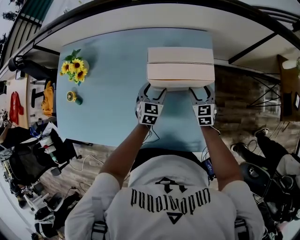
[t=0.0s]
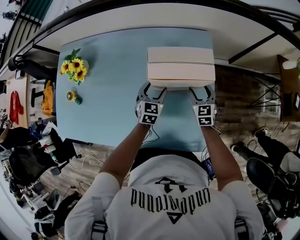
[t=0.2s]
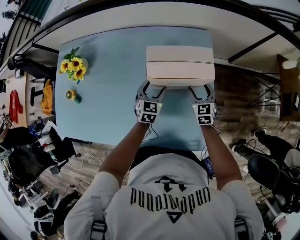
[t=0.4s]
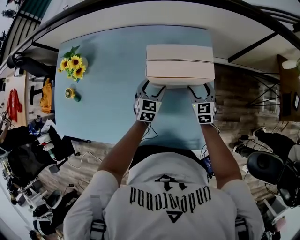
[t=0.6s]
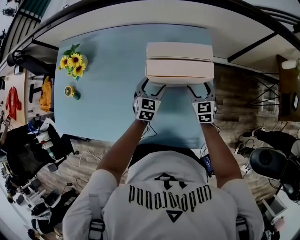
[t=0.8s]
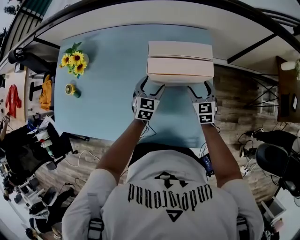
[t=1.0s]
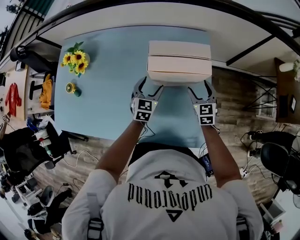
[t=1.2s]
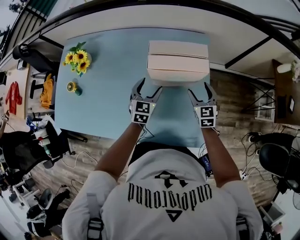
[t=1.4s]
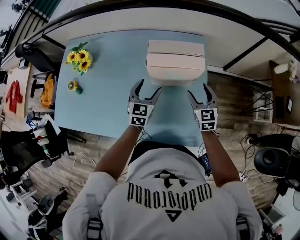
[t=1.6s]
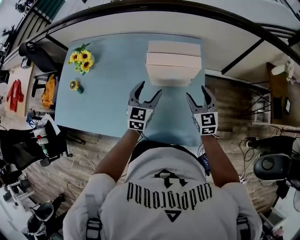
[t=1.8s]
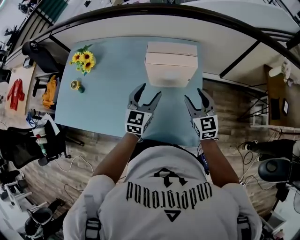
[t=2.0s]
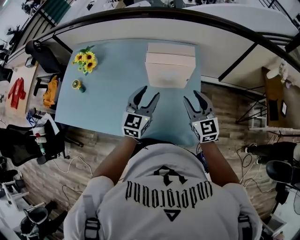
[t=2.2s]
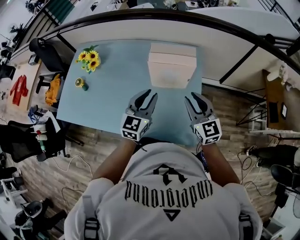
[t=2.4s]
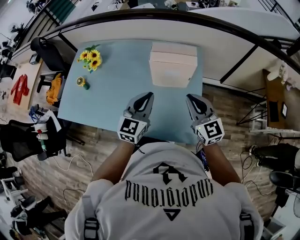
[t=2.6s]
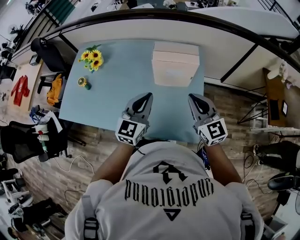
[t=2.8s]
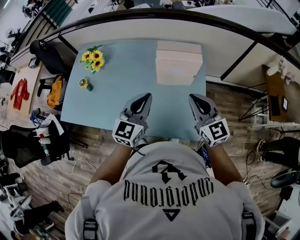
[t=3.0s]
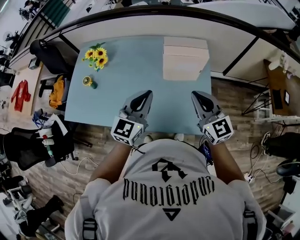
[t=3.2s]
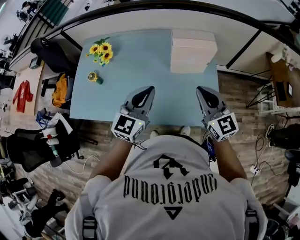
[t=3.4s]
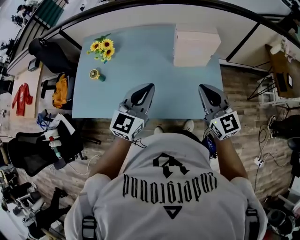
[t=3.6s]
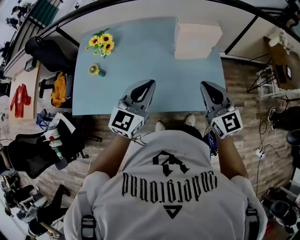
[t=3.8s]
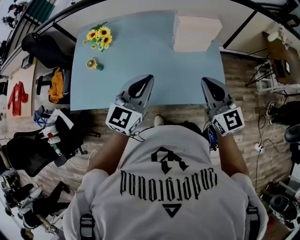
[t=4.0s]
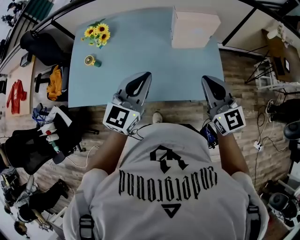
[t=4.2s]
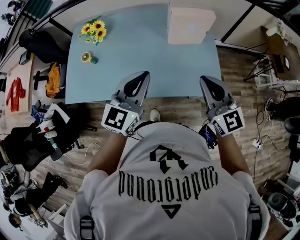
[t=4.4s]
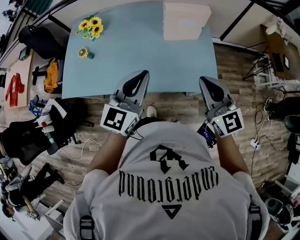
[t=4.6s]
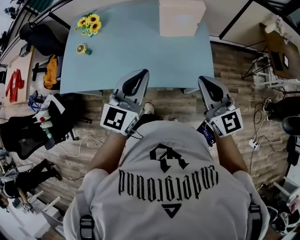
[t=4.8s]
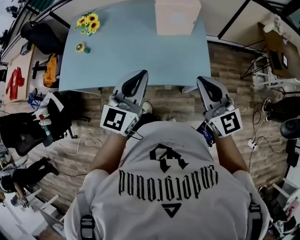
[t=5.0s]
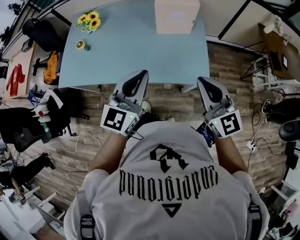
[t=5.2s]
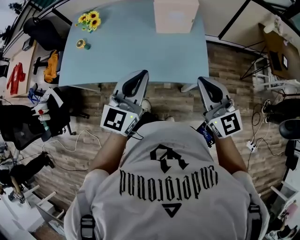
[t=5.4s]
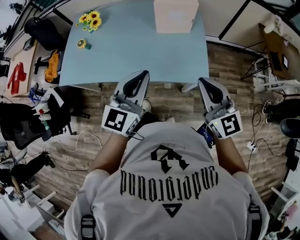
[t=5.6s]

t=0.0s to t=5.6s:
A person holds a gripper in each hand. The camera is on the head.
t=0.0s to t=1.4s: The grippers both shift upward by about 5 cm.
t=1.4s to t=2.8s: Both grippers travel together upward and backward, some 30 cm. The left gripper turns by approximately 20 degrees, and closes its fingers. The right gripper changes its angle by approximately 30 degrees, and closes.
t=2.8s to t=4.2s: The two grippers go roughly 20 cm to the left and backward.
t=4.2s to t=5.6s: The two grippers go approximately 20 cm to the right and backward.

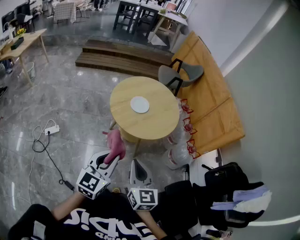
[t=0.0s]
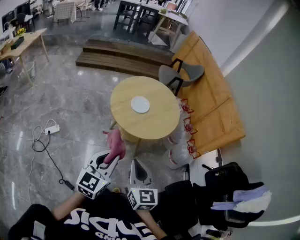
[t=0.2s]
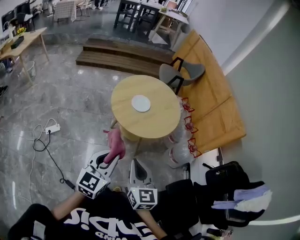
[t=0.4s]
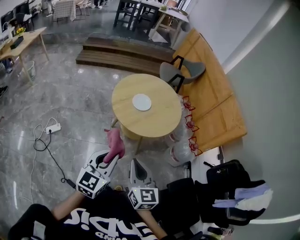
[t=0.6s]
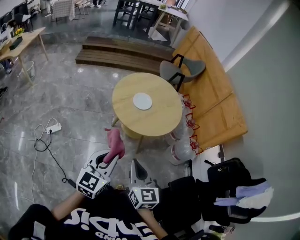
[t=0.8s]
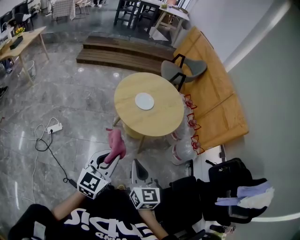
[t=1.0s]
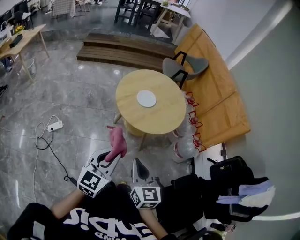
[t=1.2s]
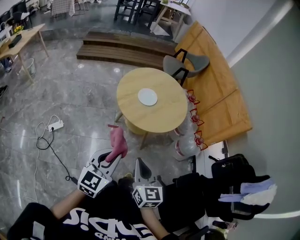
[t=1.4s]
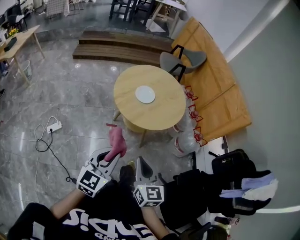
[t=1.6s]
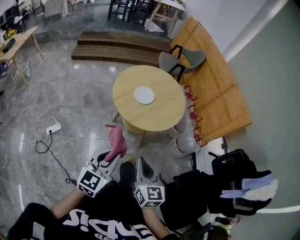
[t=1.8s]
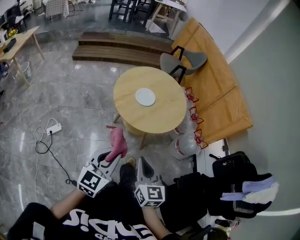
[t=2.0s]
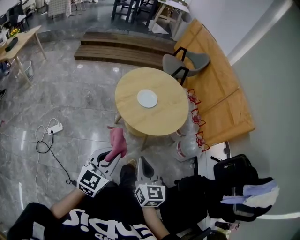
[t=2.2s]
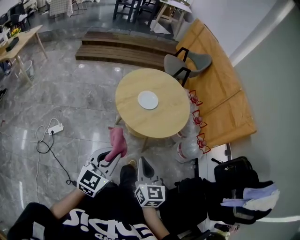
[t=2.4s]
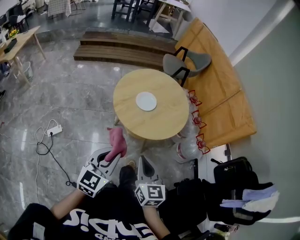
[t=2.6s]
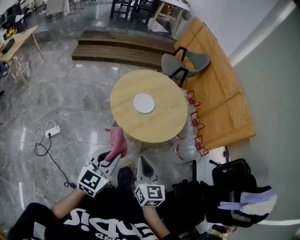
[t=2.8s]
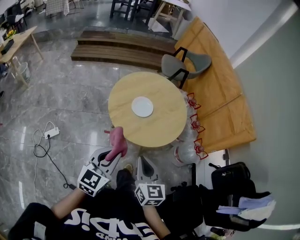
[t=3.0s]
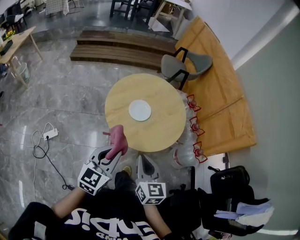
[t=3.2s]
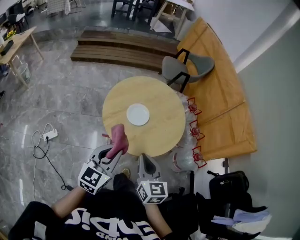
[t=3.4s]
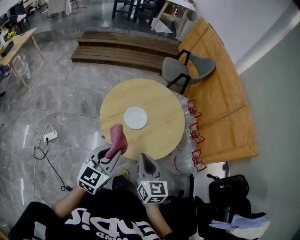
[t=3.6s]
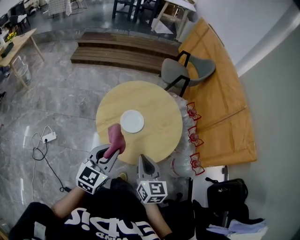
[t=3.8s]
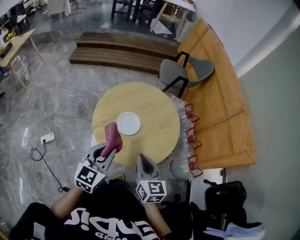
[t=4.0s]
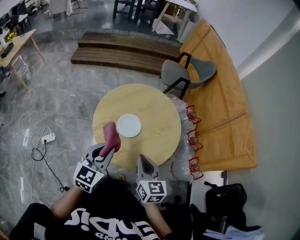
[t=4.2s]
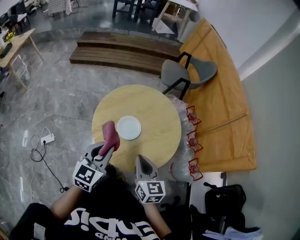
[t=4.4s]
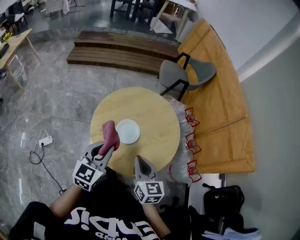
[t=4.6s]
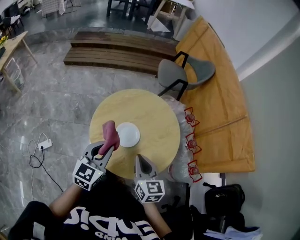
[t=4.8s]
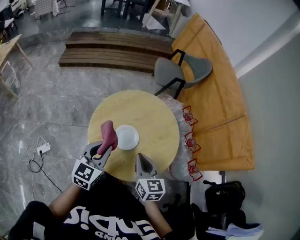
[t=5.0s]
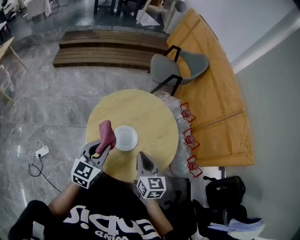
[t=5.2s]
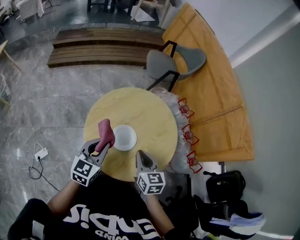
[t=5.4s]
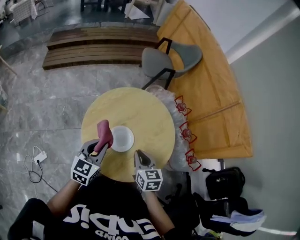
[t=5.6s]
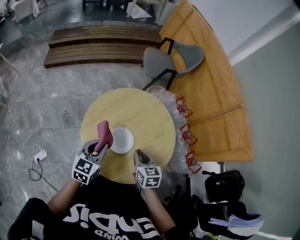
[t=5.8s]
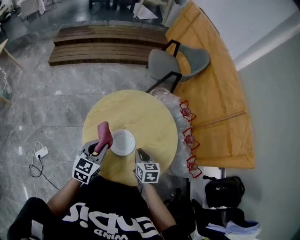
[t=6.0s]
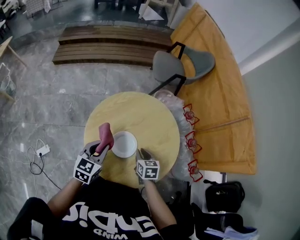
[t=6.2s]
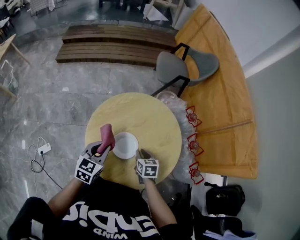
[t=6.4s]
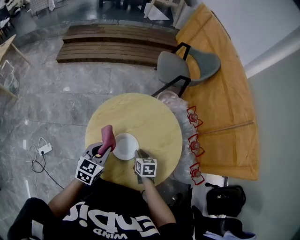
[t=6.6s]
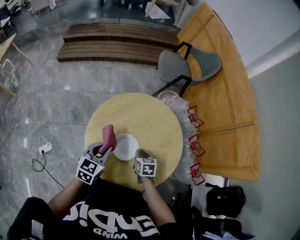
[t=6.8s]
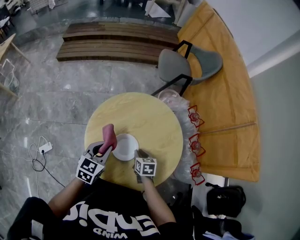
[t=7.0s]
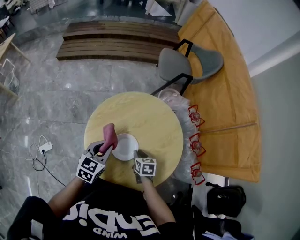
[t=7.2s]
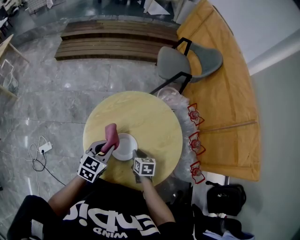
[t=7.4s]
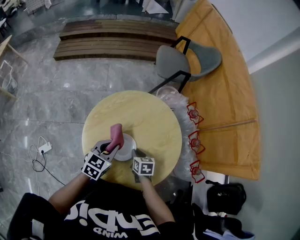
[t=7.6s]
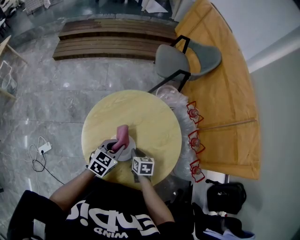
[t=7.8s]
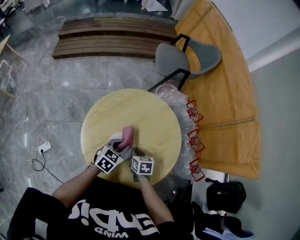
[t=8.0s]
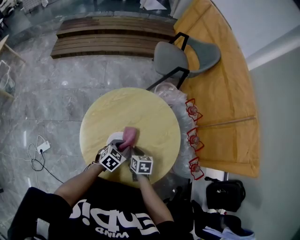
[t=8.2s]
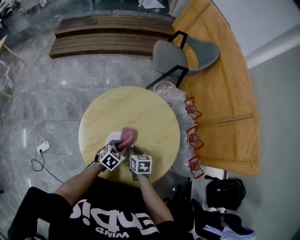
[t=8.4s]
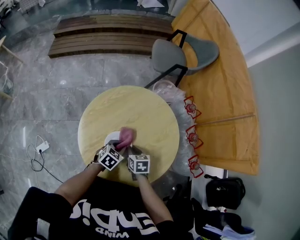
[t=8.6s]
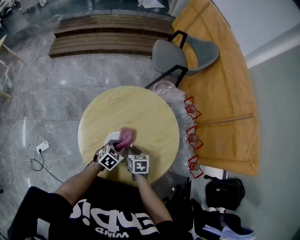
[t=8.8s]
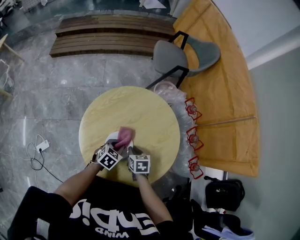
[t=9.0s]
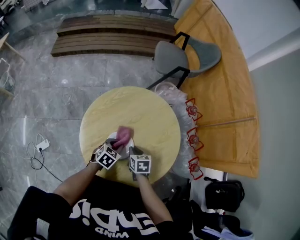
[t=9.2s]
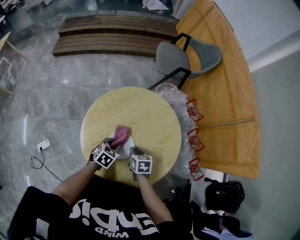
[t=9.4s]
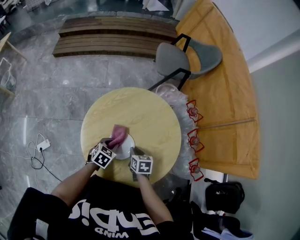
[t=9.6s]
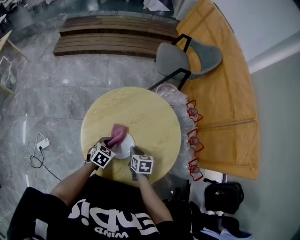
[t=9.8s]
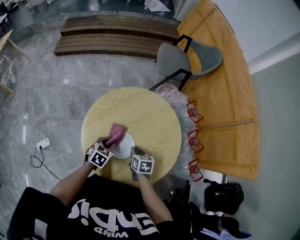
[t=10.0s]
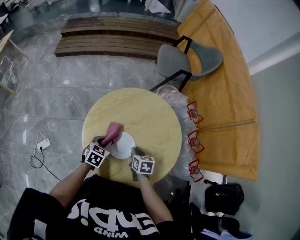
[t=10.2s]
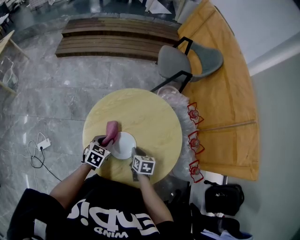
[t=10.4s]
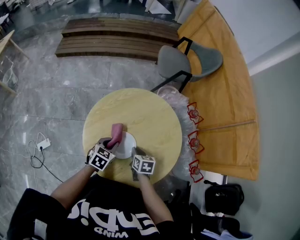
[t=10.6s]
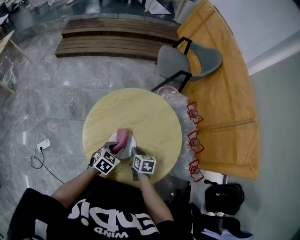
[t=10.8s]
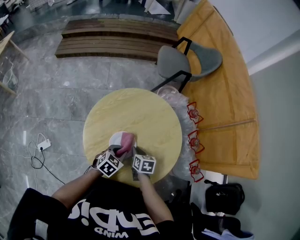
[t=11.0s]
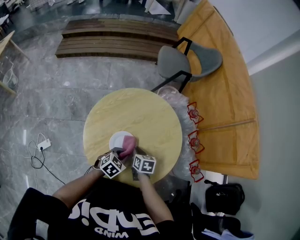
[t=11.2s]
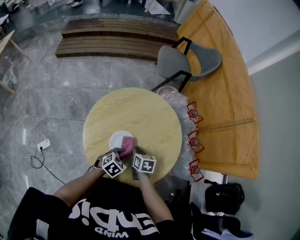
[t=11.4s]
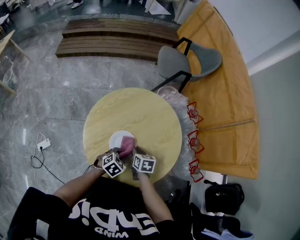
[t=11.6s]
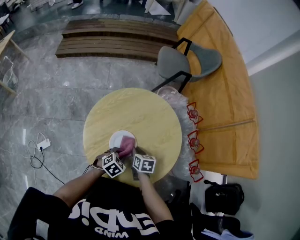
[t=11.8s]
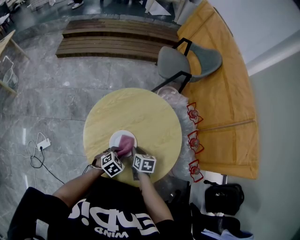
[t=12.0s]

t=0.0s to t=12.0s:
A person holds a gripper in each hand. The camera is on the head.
t=0.0s to t=1.6s: The left gripper ends up some 5 cm from where it was.
t=1.6s to t=3.0s: Both grippers travel together forward, roughly 15 cm.
t=3.0s to t=4.4s: The grippers both shift forward by about 20 cm.
t=4.4s to t=6.0s: The two grippers go some 20 cm forward and downward. The right gripper changes its angle by some 20 degrees.
t=6.0s to t=7.6s: The right gripper travels downward by about 10 cm, while the left gripper is displaced downward and to the right by approximately 10 cm.
t=7.6s to t=9.0s: The left gripper shifts about 10 cm downward.
t=9.0s to t=10.4s: The left gripper moves to the left, roughly 10 cm.
t=10.4s to t=12.0s: The left gripper shifts roughly 10 cm to the right and backward, and swivels approximately 30 degrees.

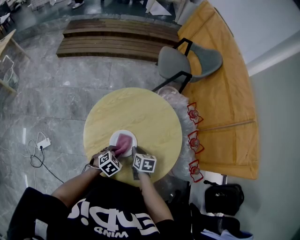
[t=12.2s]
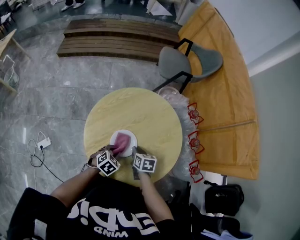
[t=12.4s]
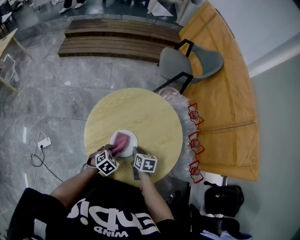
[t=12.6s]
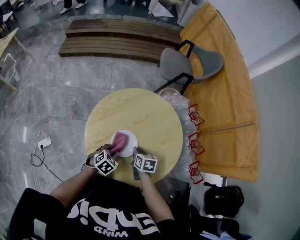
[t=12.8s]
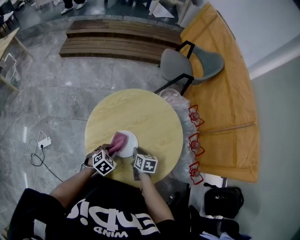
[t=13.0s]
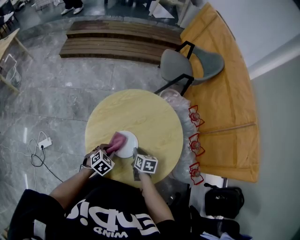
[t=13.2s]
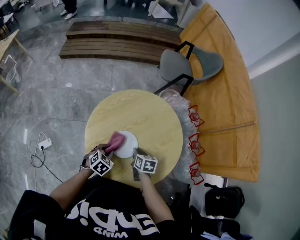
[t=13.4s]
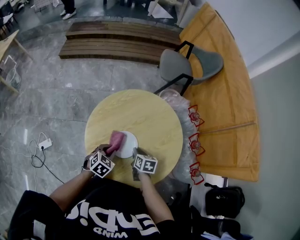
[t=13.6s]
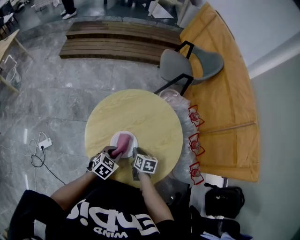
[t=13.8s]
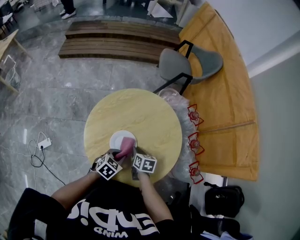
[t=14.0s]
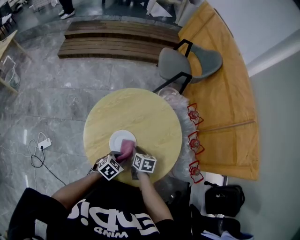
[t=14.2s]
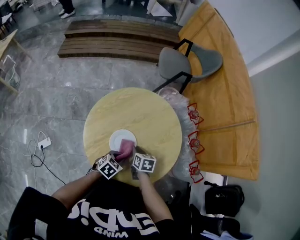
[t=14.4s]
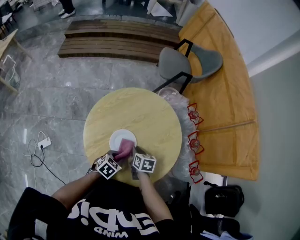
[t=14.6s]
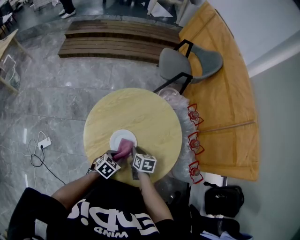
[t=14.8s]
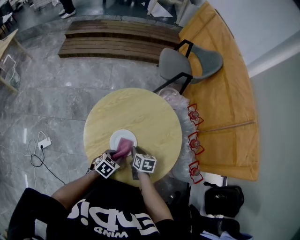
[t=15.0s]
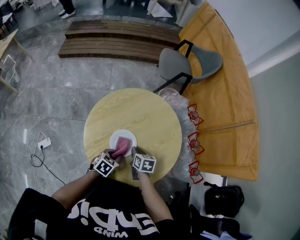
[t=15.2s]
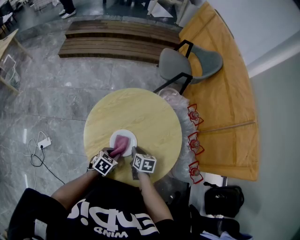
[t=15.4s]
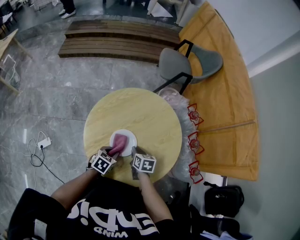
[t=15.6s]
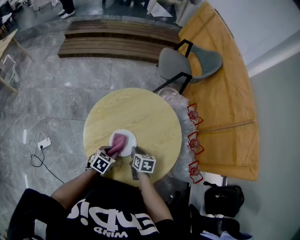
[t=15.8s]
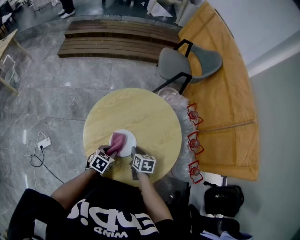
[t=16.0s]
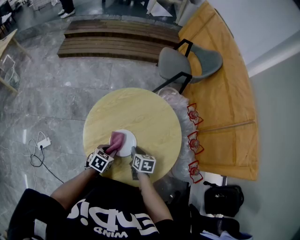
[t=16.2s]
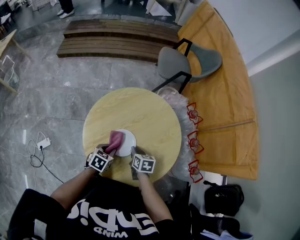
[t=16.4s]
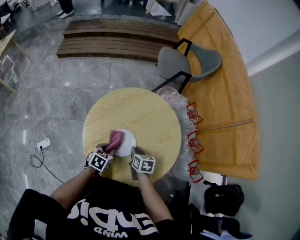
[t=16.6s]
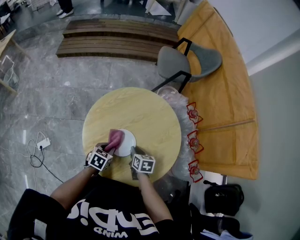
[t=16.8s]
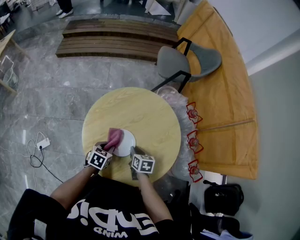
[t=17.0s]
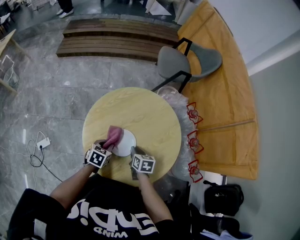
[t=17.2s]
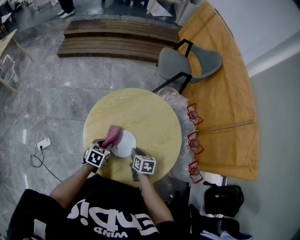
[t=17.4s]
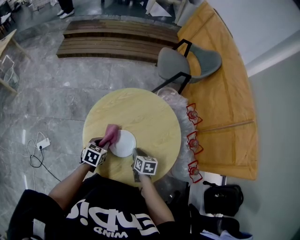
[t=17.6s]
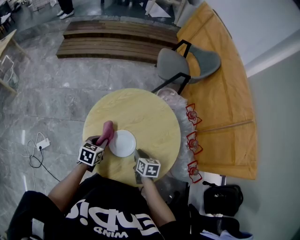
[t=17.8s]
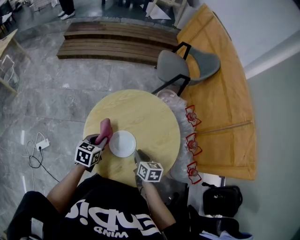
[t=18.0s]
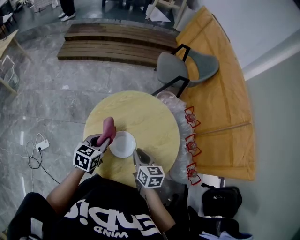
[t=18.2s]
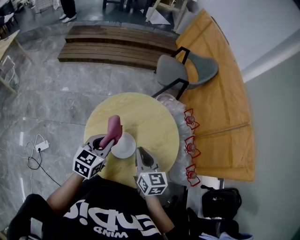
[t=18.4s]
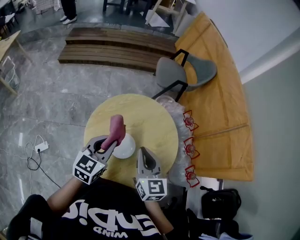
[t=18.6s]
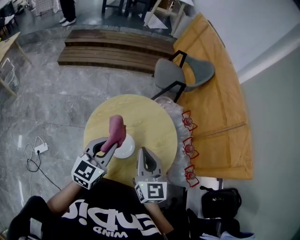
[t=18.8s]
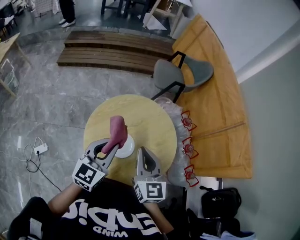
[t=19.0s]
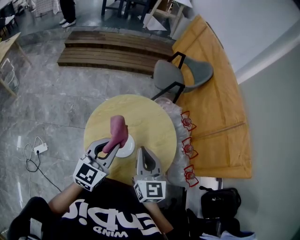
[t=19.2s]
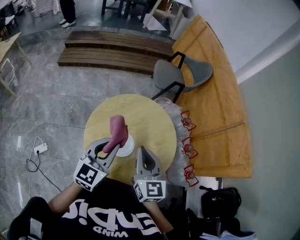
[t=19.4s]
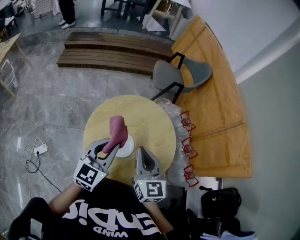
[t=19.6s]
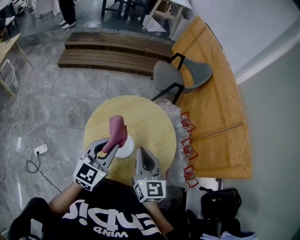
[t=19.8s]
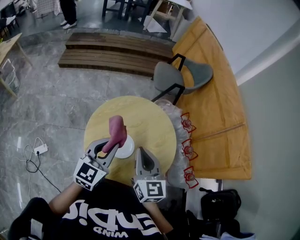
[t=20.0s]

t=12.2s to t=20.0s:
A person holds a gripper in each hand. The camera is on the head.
t=15.4s to t=16.8s: The grippers stay close to where they were, moving slightly.
t=16.8s to t=18.4s: Both grippers travel together upward, some 20 cm. The left gripper rotates some 30 degrees. Meanwhile the right gripper changes its angle by approximately 30 degrees.
t=18.4s to t=20.0s: Both grippers move upward, approximately 10 cm. The left gripper swivels approximately 20 degrees.
